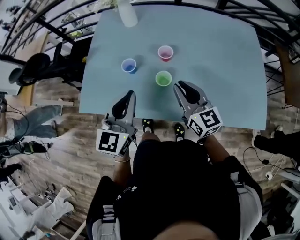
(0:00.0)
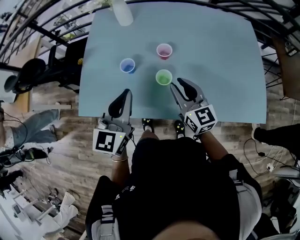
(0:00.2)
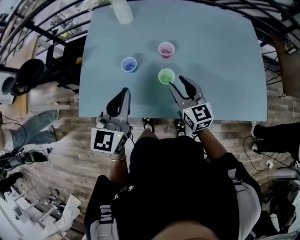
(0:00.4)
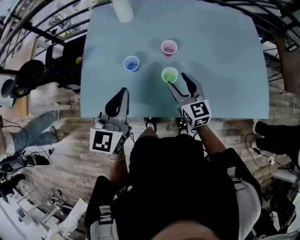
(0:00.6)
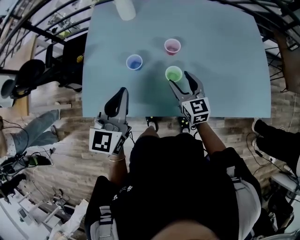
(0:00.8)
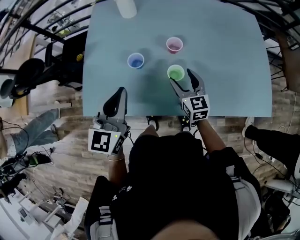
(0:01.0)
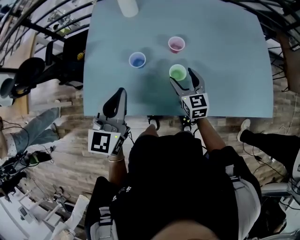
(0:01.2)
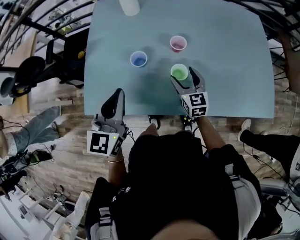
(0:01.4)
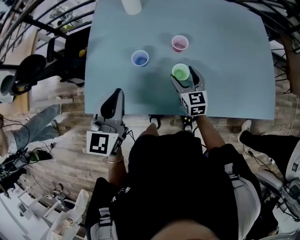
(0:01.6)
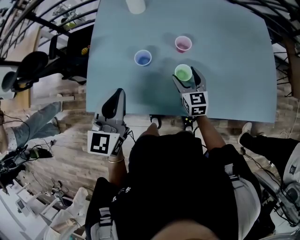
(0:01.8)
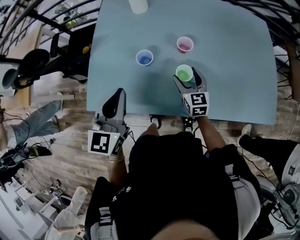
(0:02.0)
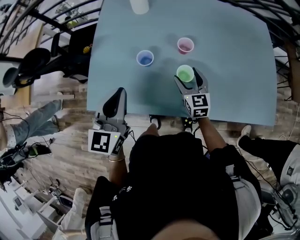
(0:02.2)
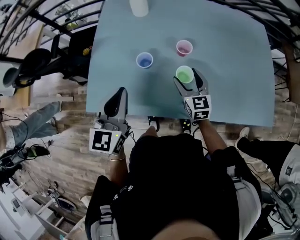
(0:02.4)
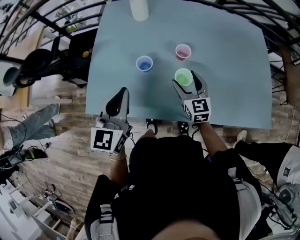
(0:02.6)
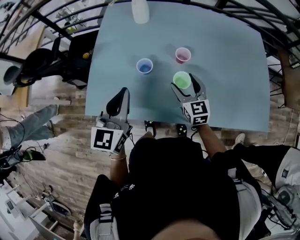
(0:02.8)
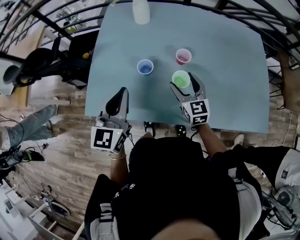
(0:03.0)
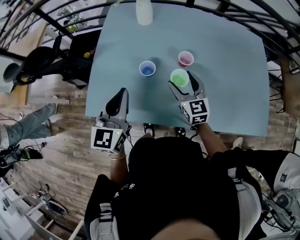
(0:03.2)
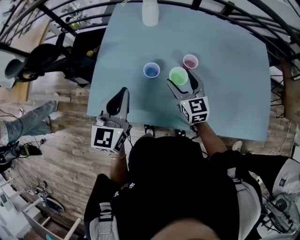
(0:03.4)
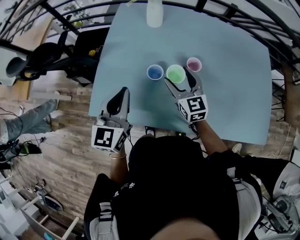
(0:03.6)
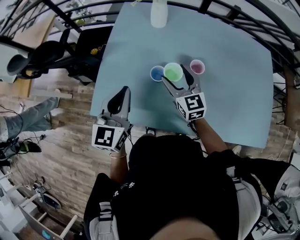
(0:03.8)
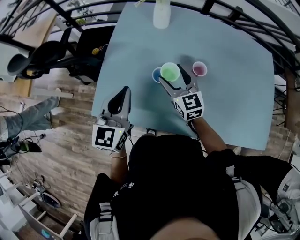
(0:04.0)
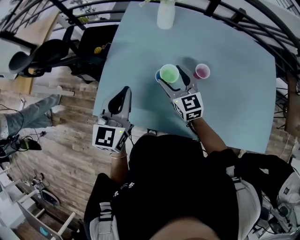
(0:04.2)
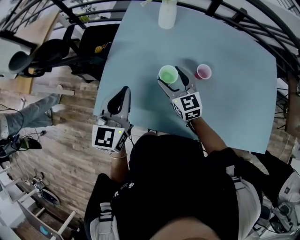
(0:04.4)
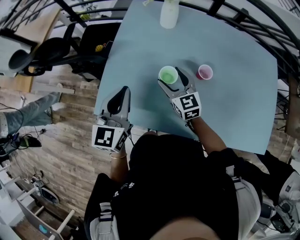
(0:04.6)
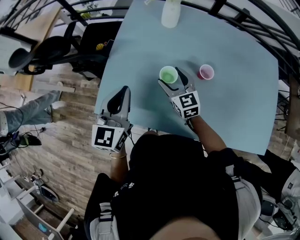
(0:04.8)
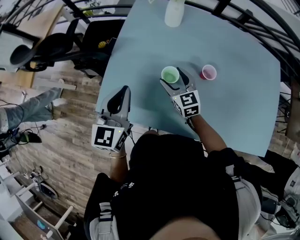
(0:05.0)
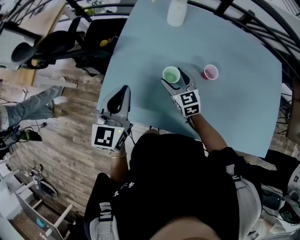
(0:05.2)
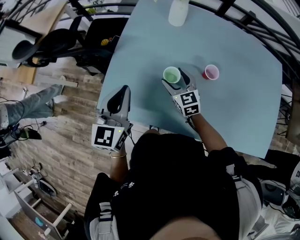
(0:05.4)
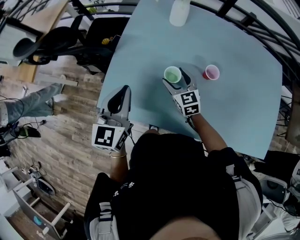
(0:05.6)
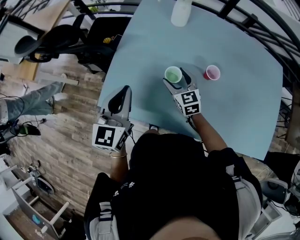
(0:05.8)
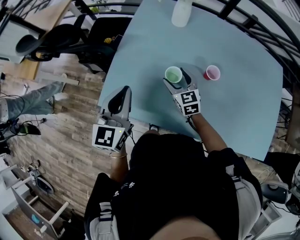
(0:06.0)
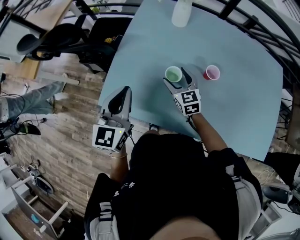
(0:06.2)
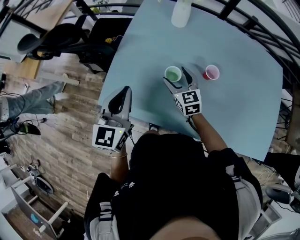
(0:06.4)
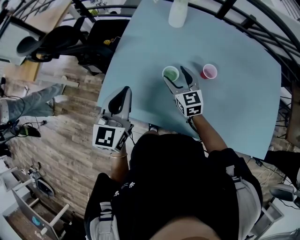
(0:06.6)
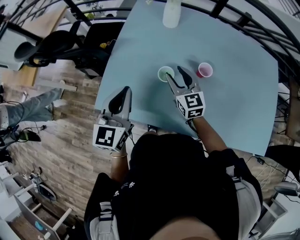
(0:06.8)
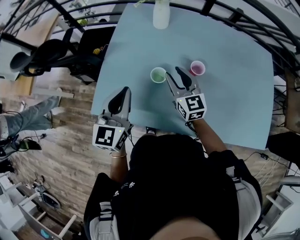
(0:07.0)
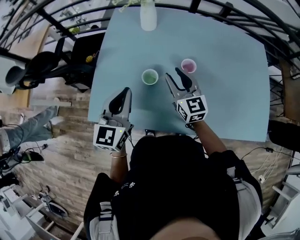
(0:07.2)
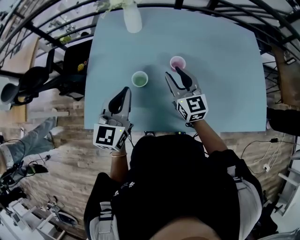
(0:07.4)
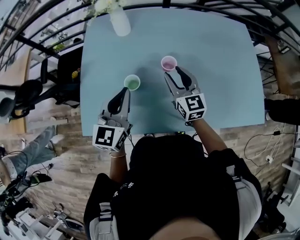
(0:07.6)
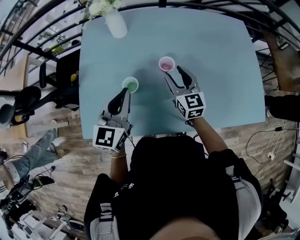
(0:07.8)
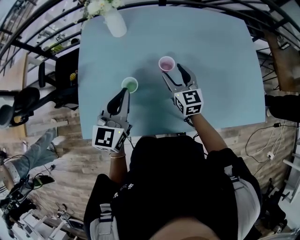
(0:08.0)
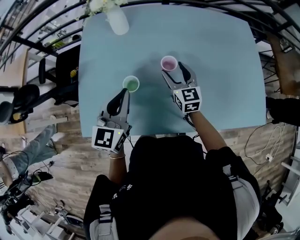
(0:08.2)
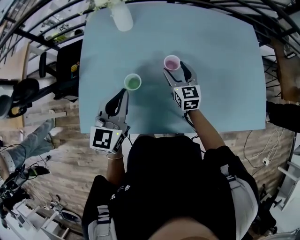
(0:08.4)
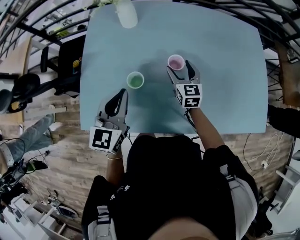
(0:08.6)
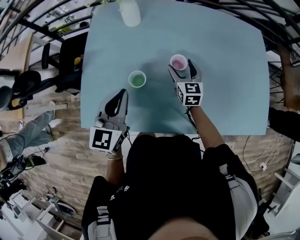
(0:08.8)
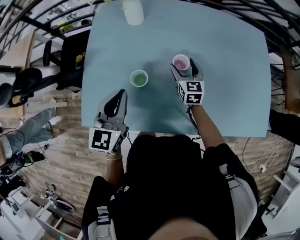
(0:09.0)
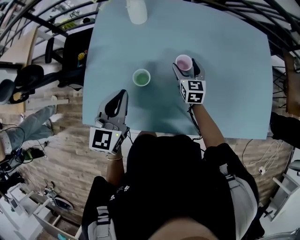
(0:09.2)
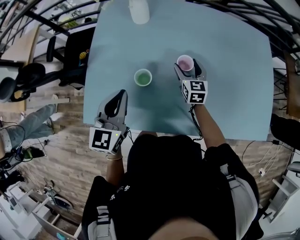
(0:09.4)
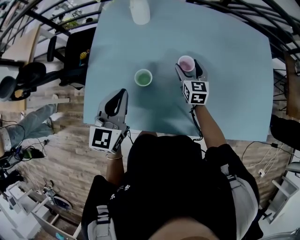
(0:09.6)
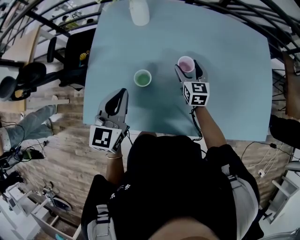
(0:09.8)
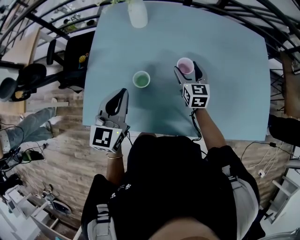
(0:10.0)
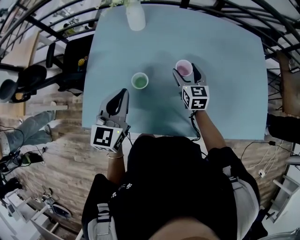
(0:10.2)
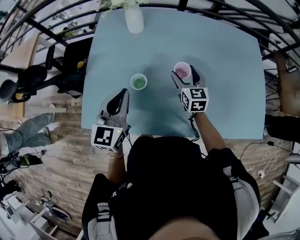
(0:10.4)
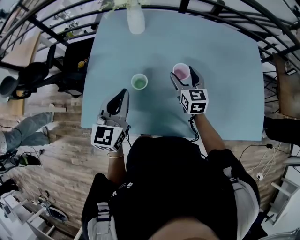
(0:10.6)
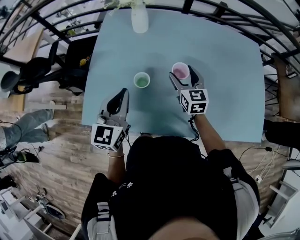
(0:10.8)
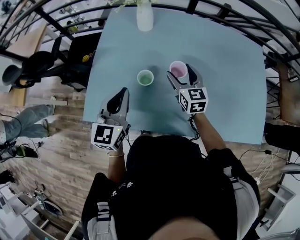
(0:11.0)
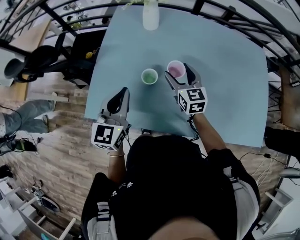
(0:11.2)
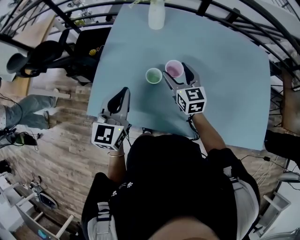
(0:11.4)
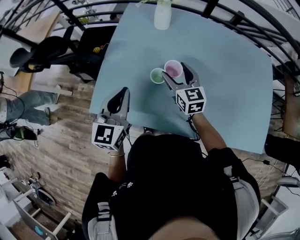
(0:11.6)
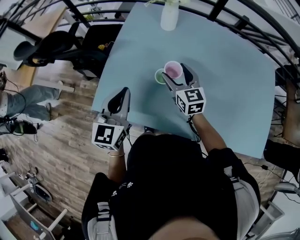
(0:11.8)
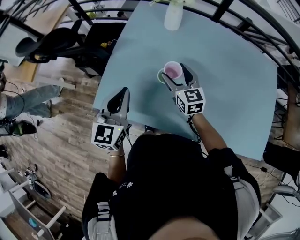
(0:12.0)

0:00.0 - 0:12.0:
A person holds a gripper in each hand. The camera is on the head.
0:00.0 - 0:01.6: The right gripper goes approximately 15 cm downward, forward and to the left, changes its angle by some 20 degrees, and opens its fingers; the left gripper moves to the left, roughly 10 cm.
0:01.6 - 0:03.0: The right gripper heads upward, covering approximately 5 cm.
0:03.0 - 0:04.4: The right gripper moves to the left and forward, approximately 15 cm. Meanwhile the left gripper goes roughly 10 cm to the left and forward.
0:04.4 - 0:06.0: The right gripper heads downward, covering roughly 5 cm.
0:06.0 - 0:07.6: The right gripper heads to the right and upward, covering roughly 20 cm, changes its angle by about 30 degrees, and closes up. The left gripper shifts about 15 cm to the right, and turns by about 20 degrees.
0:07.6 - 0:09.0: The right gripper goes approximately 15 cm downward and forward, and opens its fingers.
0:09.0 - 0:10.4: The right gripper moves upward, about 5 cm.
0:10.4 - 0:12.0: The right gripper is displaced to the left by some 20 cm, and swivels about 20 degrees. The left gripper shifts approximately 10 cm to the left.

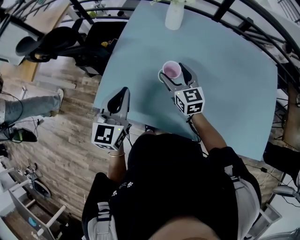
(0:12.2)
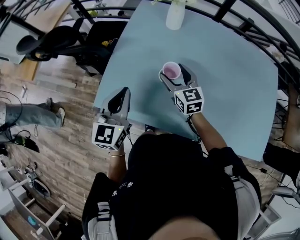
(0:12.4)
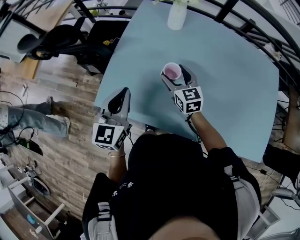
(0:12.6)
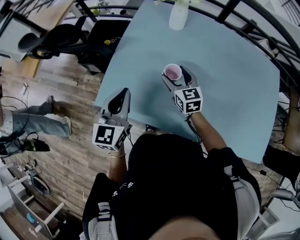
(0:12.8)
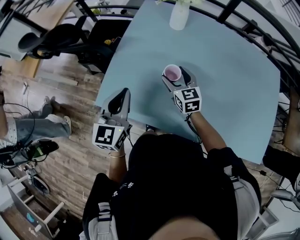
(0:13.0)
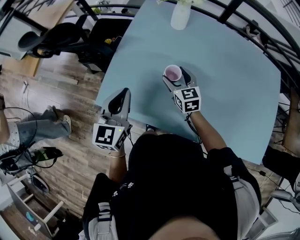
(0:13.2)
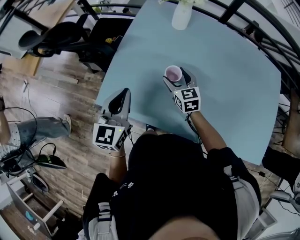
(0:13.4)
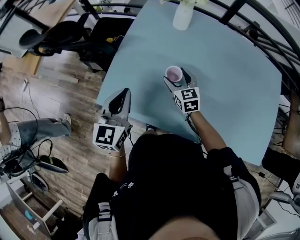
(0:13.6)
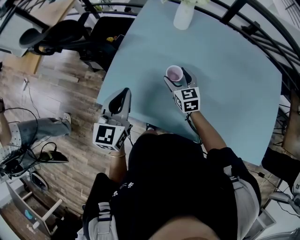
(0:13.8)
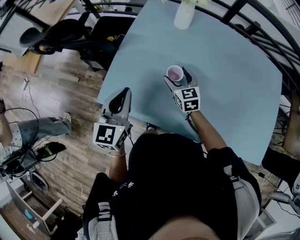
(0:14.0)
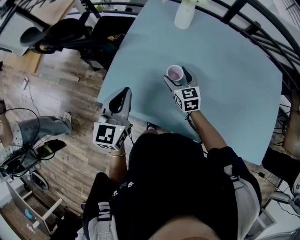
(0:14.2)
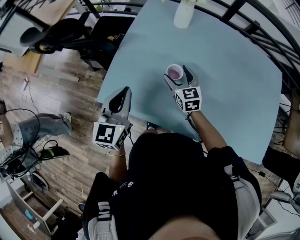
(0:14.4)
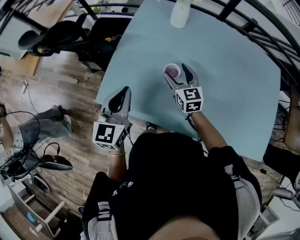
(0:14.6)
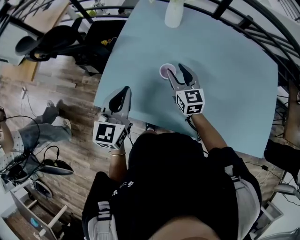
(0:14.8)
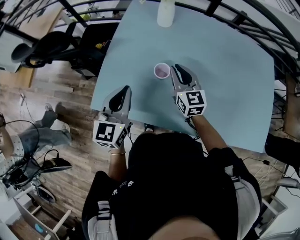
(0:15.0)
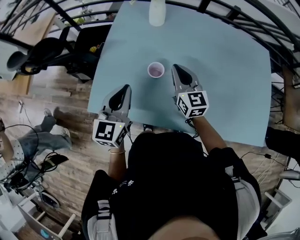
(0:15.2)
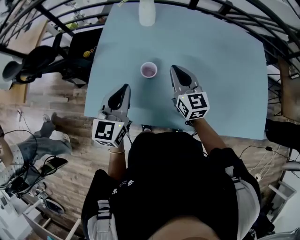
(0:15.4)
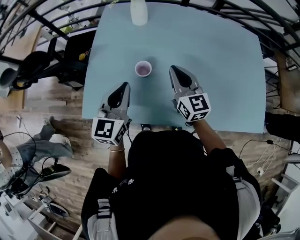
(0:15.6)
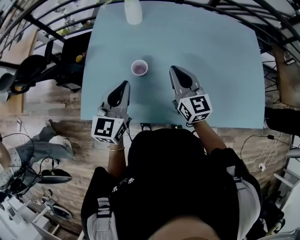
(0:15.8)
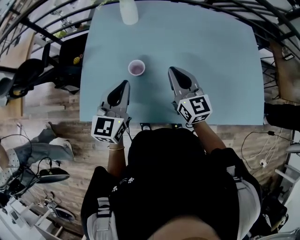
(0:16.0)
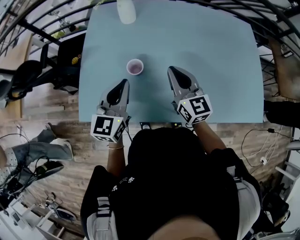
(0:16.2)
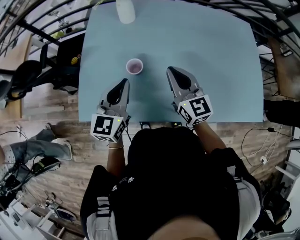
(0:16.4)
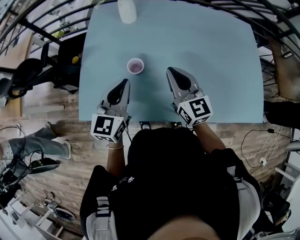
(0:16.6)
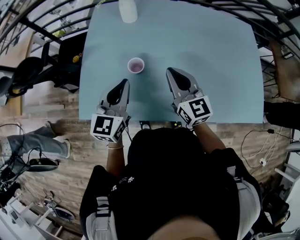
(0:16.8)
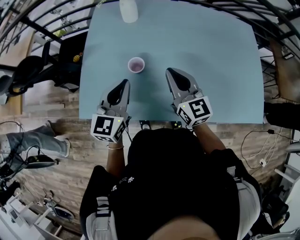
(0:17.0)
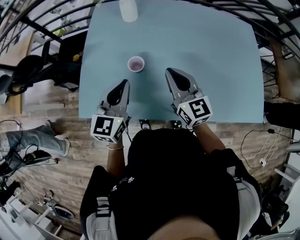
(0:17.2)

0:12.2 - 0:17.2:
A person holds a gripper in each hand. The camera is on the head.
0:12.2 - 0:13.8: The right gripper moves downward, roughly 5 cm.
0:13.8 - 0:15.6: The right gripper travels upward, to the right and backward by roughly 20 cm, rotates approximately 30 degrees, and closes up; the left gripper goes approximately 10 cm to the right.
0:15.6 - 0:17.2: The grippers stay close to where they were, moving slightly.

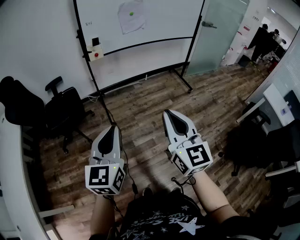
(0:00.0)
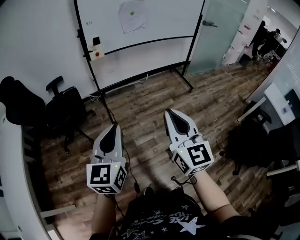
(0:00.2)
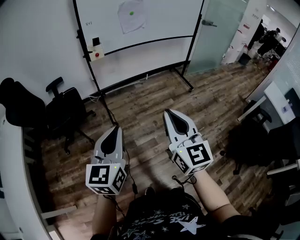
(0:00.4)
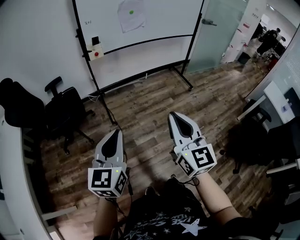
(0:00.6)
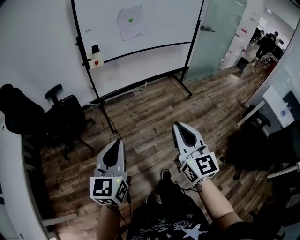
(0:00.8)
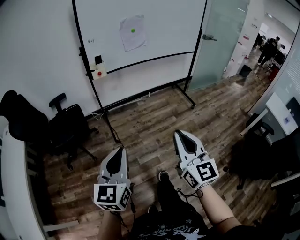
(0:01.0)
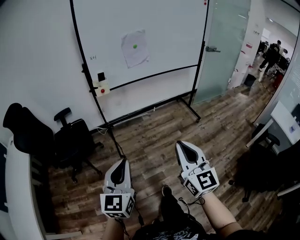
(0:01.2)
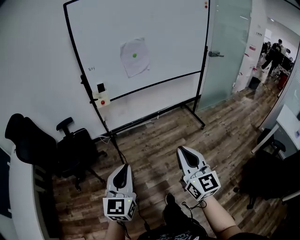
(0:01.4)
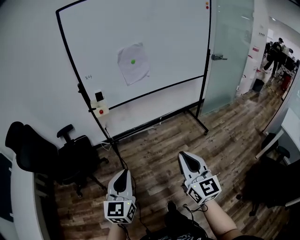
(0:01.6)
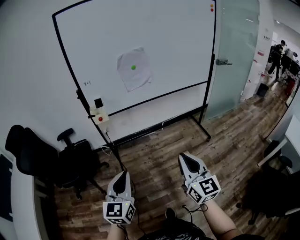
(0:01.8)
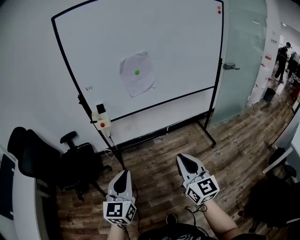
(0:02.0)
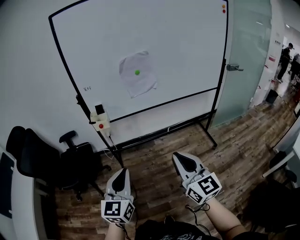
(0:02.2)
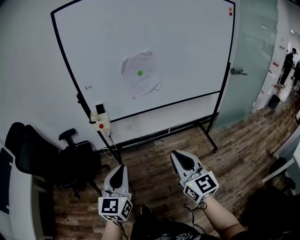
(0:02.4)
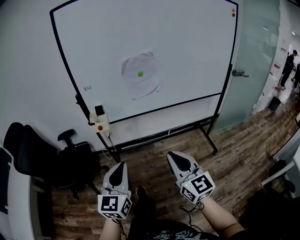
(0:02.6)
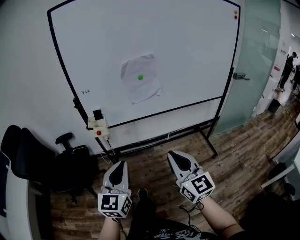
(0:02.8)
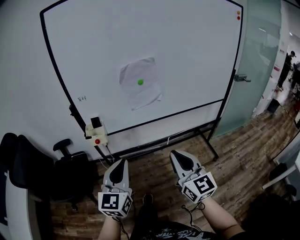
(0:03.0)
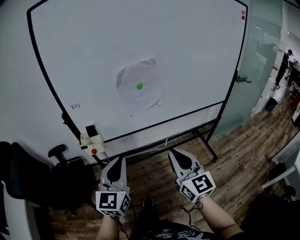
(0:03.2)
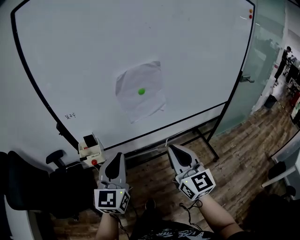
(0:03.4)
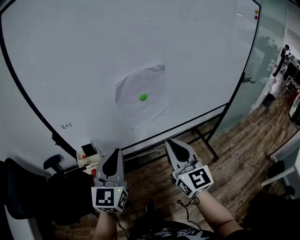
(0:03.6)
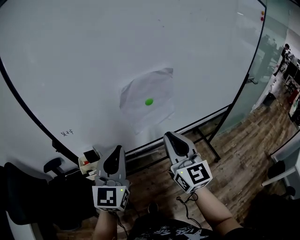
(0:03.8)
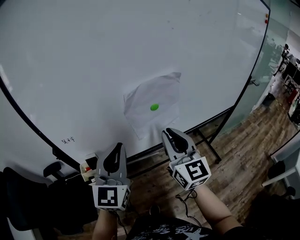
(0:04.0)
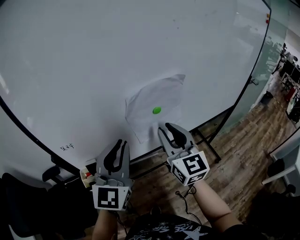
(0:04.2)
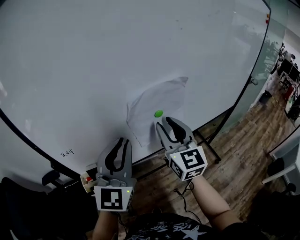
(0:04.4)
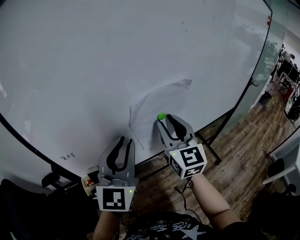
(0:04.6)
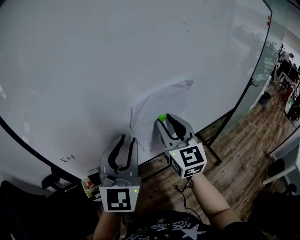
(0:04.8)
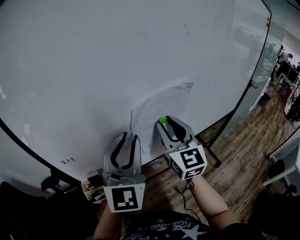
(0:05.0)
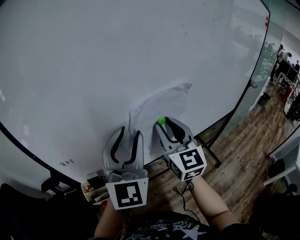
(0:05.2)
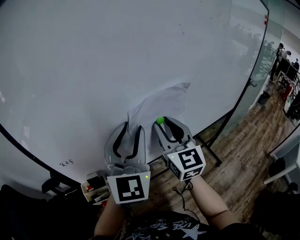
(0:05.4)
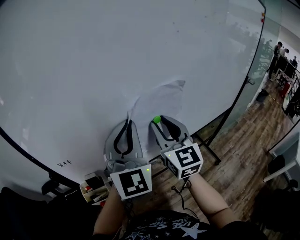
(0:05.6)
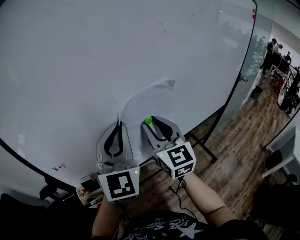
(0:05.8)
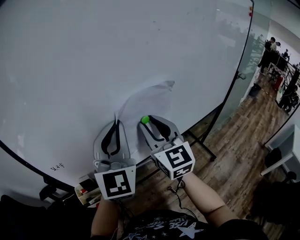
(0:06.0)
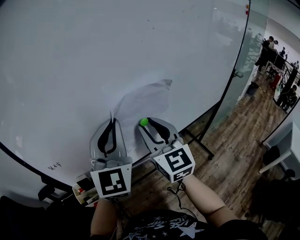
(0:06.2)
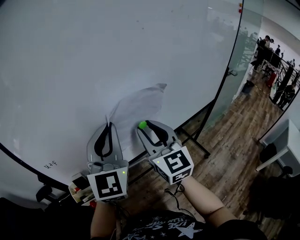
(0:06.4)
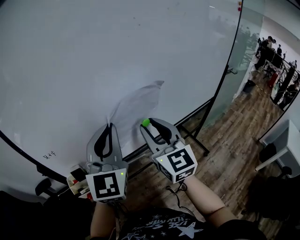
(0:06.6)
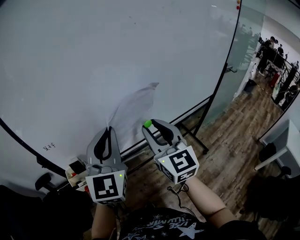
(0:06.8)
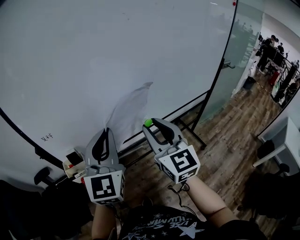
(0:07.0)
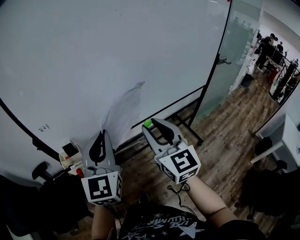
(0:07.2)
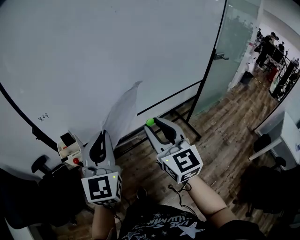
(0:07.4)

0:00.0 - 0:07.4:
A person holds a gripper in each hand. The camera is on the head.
0:00.0 - 0:01.4: The left gripper travels forward by approximately 10 cm, while the right gripper goes roughly 15 cm forward and to the right.
0:01.4 - 0:03.0: The two grippers go some 35 cm forward.
0:03.0 - 0:04.4: The grippers both shift forward by approximately 35 cm. The right gripper opens.
0:04.4 - 0:06.0: The left gripper heads forward, covering some 5 cm, and opens, then closes again.
0:06.0 - 0:07.4: The two grippers go about 20 cm backward.
